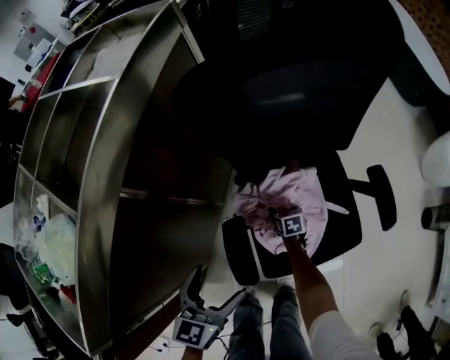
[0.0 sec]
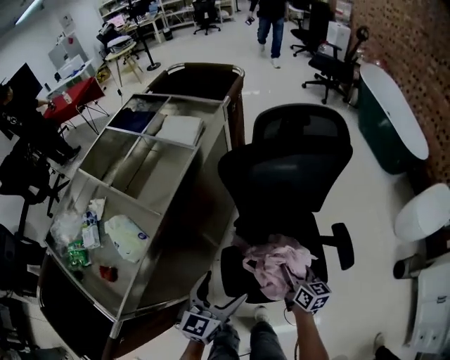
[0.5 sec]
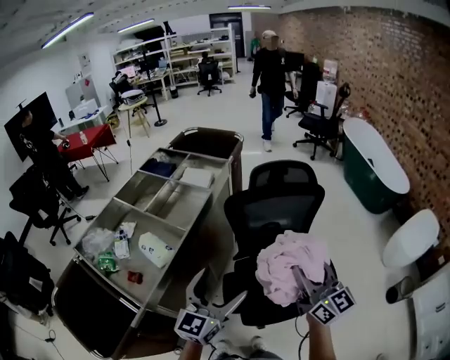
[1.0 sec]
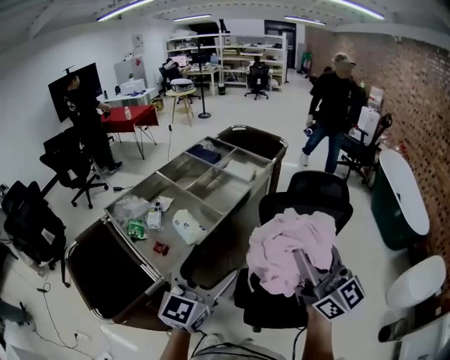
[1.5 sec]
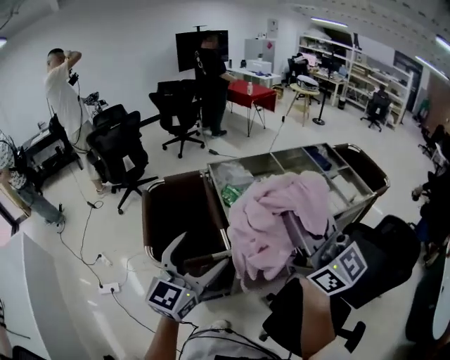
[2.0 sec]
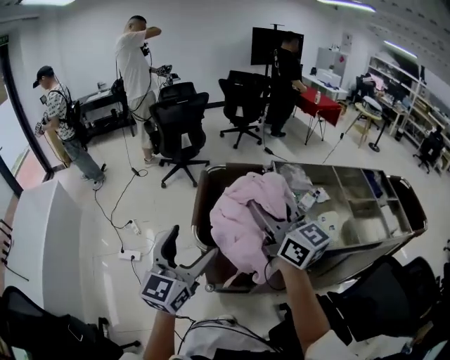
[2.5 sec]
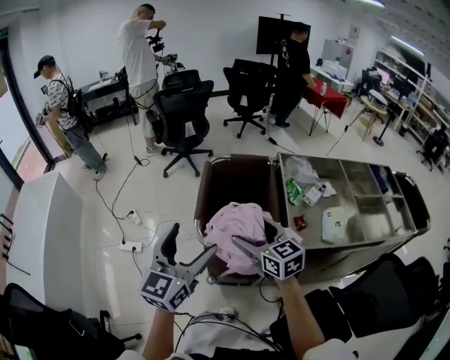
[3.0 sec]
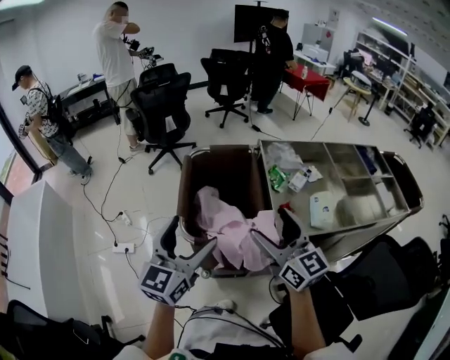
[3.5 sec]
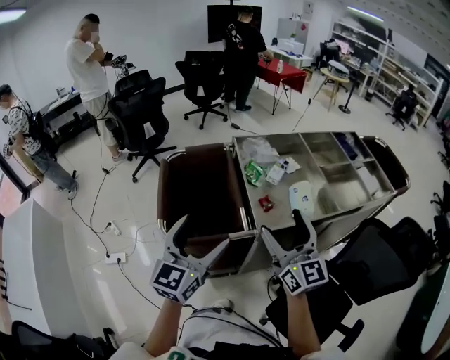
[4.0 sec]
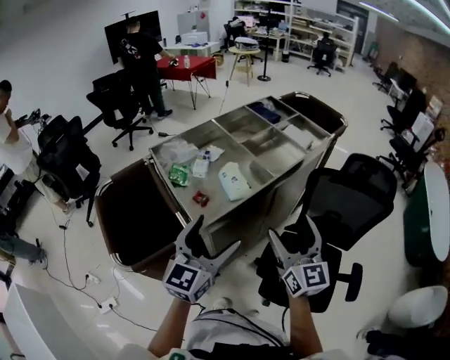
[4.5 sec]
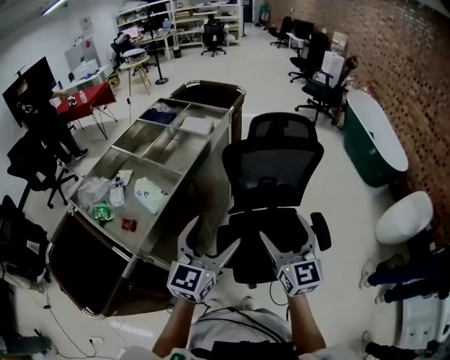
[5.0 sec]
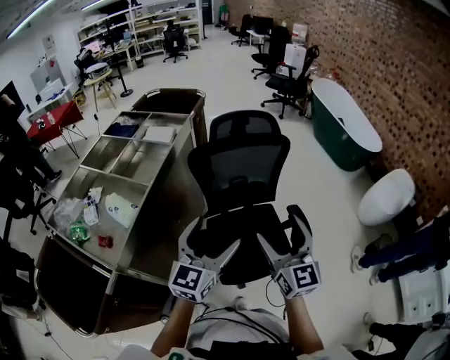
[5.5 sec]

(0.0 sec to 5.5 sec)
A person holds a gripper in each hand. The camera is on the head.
0.0 sec - 2.0 sec: The left gripper shifts roughly 40 cm upward, and tilts its fingers some 30 degrees upward; the right gripper moves upward, about 1 m, and angles its fingers upward, by approximately 80 degrees.
2.0 sec - 3.5 sec: The left gripper moves to the left, about 15 cm, and swivels about 20 degrees. Meanwhile the right gripper shifts about 25 cm downward, to the left and forward, rotates roughly 30 degrees, and opens up.
3.5 sec - 5.5 sec: The two grippers travel together, roughly 50 cm. The right gripper changes its angle by some 90 degrees, while the left gripper turns by about 80 degrees.

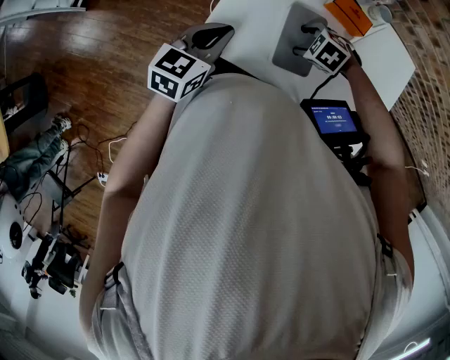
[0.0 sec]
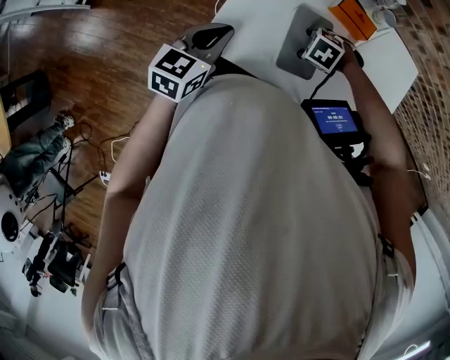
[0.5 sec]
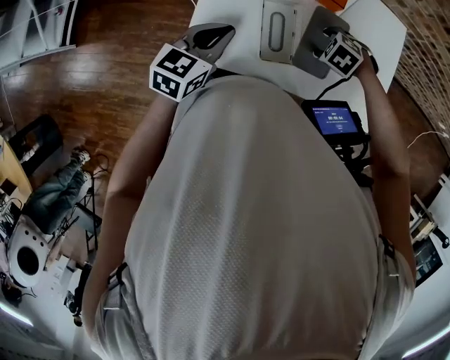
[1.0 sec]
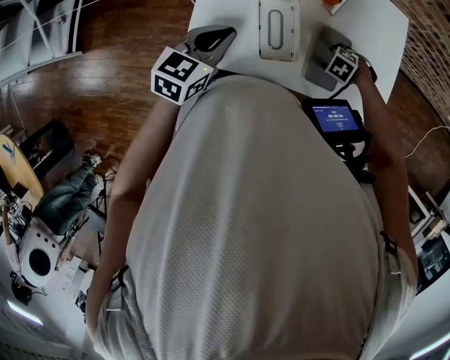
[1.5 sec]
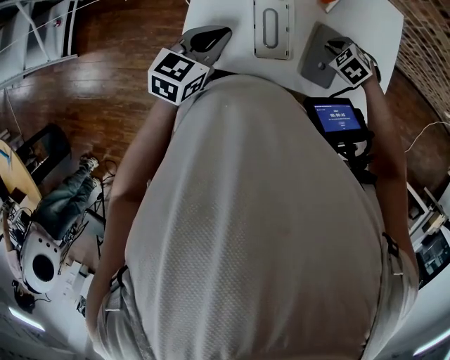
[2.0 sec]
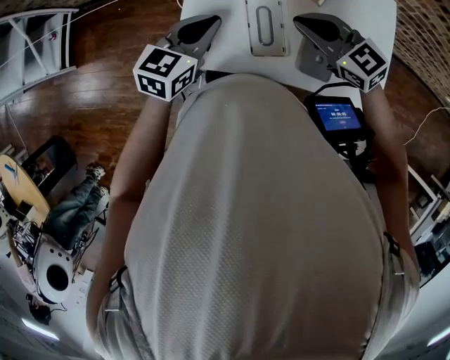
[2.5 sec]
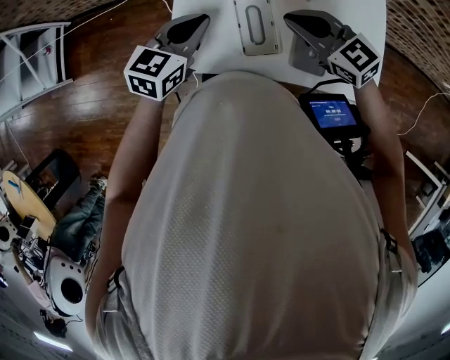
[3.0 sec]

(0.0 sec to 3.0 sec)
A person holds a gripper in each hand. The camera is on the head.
0.0 sec - 1.5 sec: The left gripper shifts by some 10 cm. Meanwhile the right gripper shifts by roughly 20 cm, and rotates about 20 degrees.
1.5 sec - 3.0 sec: The right gripper heads upward, covering roughly 25 cm, points its fingers roughly 60 degrees further upward, and closes; the left gripper shifts by about 5 cm.

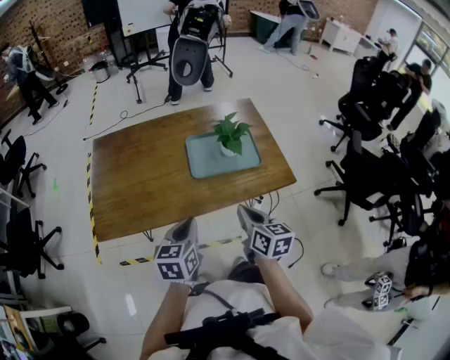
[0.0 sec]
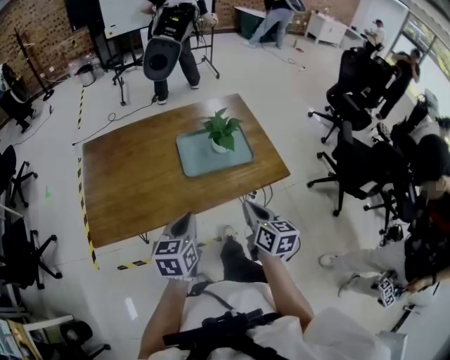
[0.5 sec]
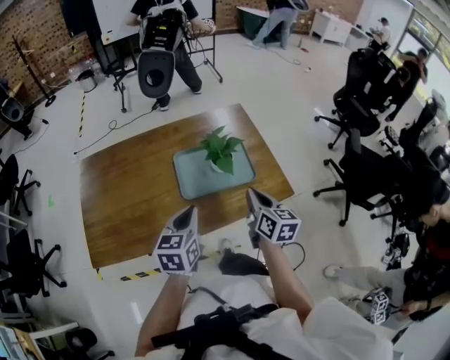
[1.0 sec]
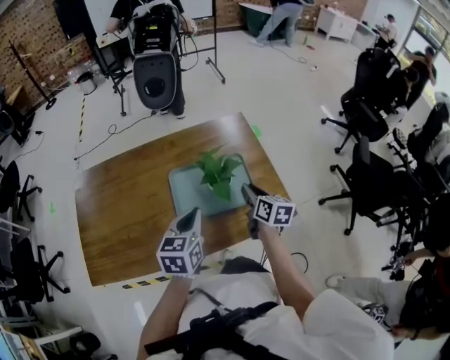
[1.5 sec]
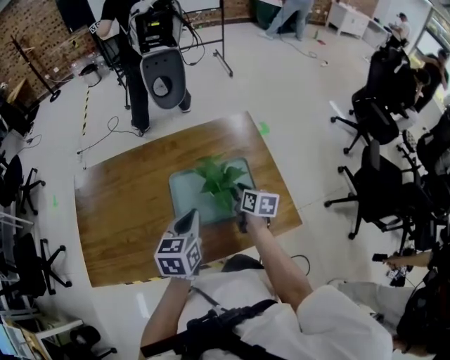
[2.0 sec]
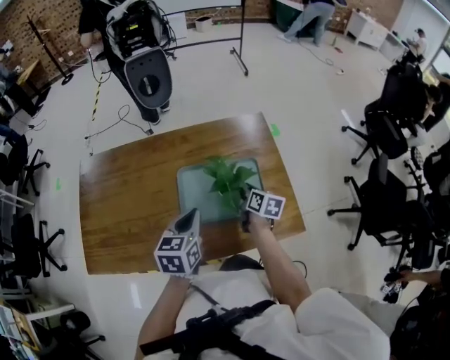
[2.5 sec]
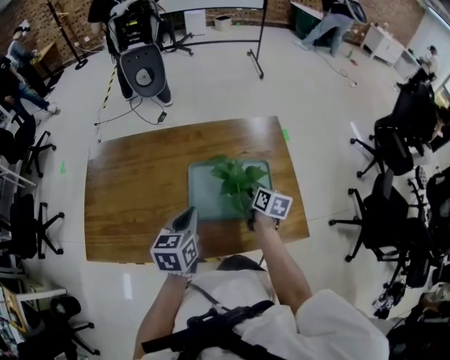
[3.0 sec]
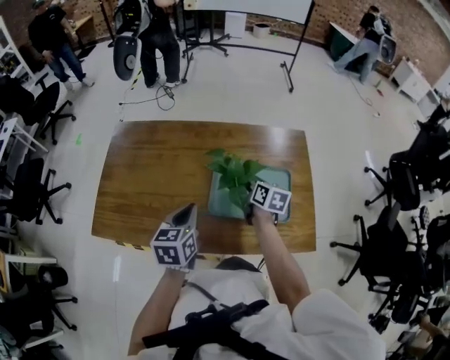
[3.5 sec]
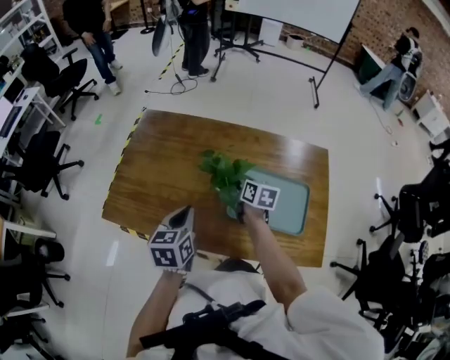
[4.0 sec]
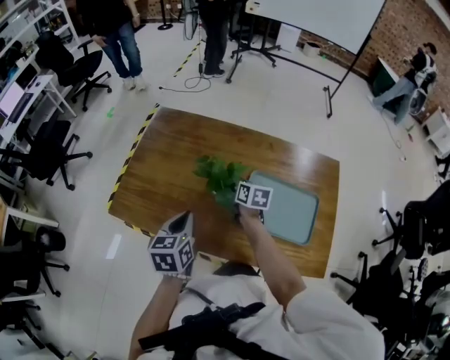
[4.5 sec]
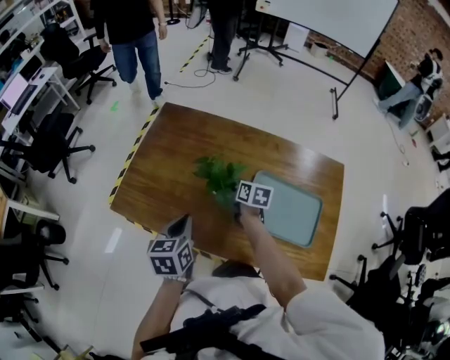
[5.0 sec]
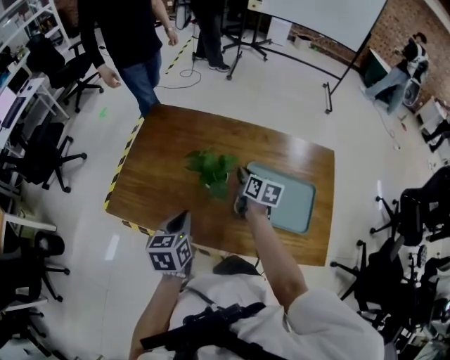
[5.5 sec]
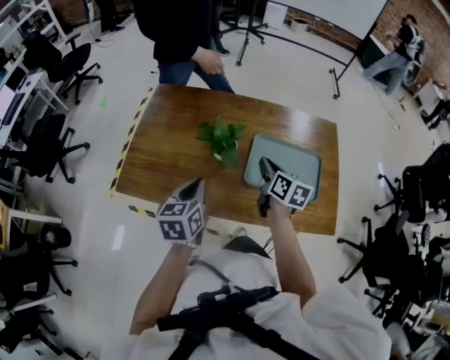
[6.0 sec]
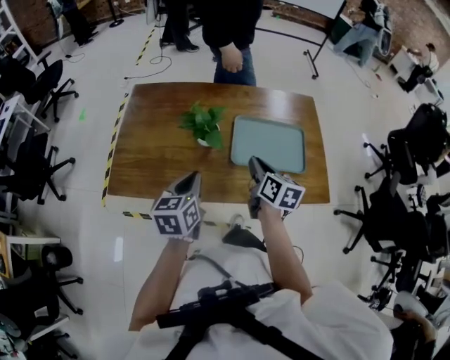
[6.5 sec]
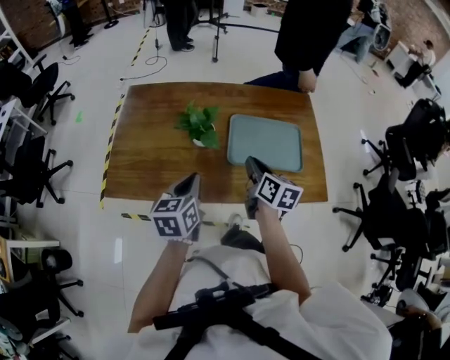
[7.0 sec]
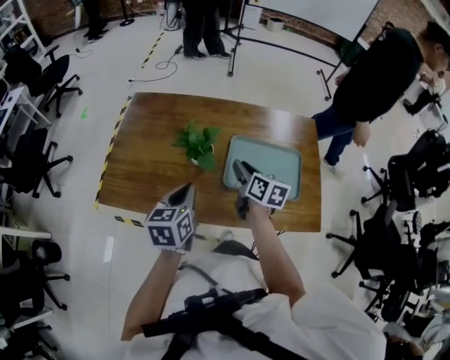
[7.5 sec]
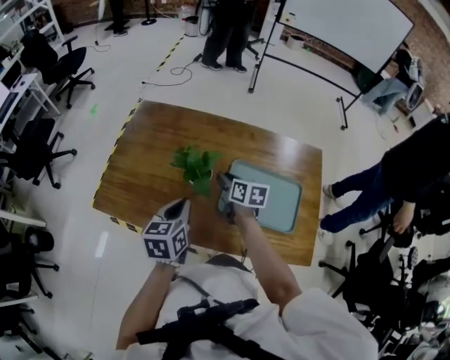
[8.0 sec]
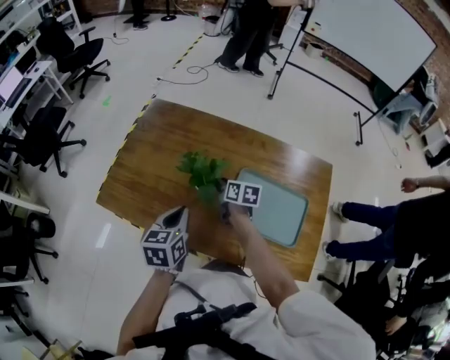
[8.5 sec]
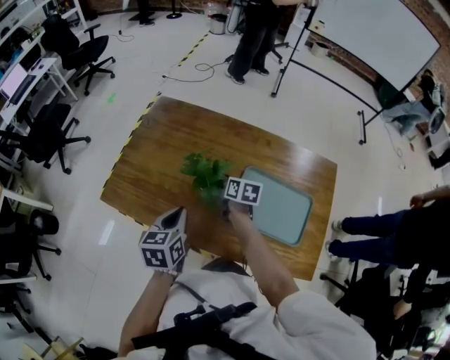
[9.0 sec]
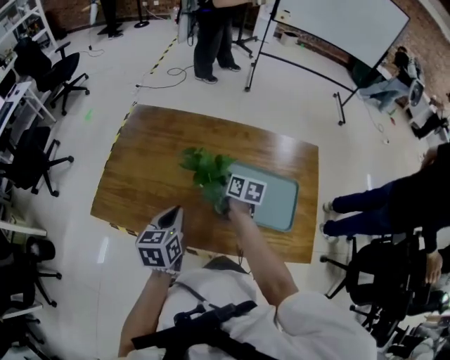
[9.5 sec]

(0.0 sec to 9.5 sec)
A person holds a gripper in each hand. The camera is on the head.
0.0 sec - 2.0 sec: The left gripper travels forward by approximately 25 cm; the right gripper travels forward and downward by approximately 35 cm, and opens its fingers.
2.0 sec - 4.0 sec: Both grippers move to the left, some 25 cm. The right gripper rotates roughly 30 degrees, and closes up, while the left gripper turns by about 30 degrees.
4.0 sec - 5.5 sec: The left gripper moves to the left, roughly 5 cm.
5.5 sec - 7.5 sec: The right gripper is displaced backward and upward by roughly 10 cm. The left gripper moves to the right, about 5 cm.
7.5 sec - 9.5 sec: The right gripper is displaced forward and downward by some 15 cm, and closes.

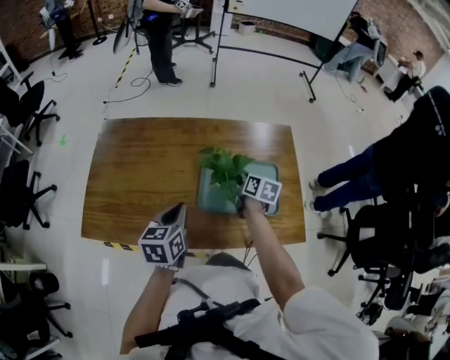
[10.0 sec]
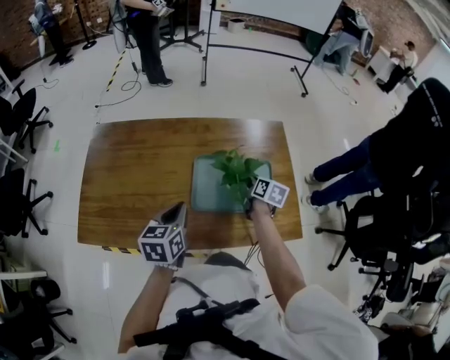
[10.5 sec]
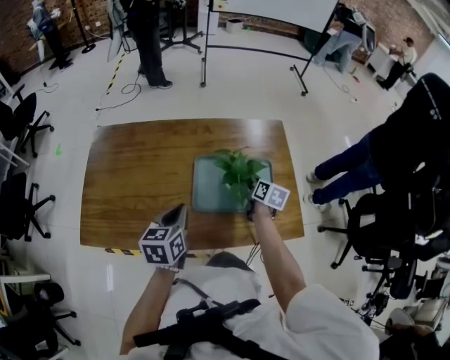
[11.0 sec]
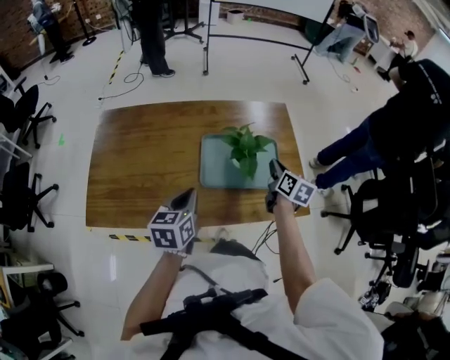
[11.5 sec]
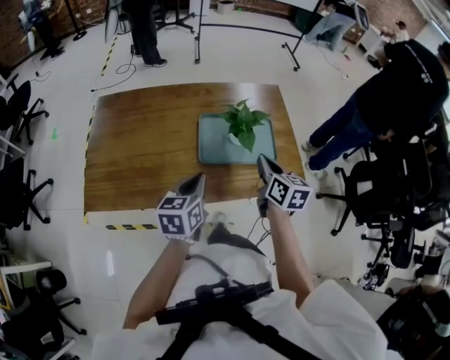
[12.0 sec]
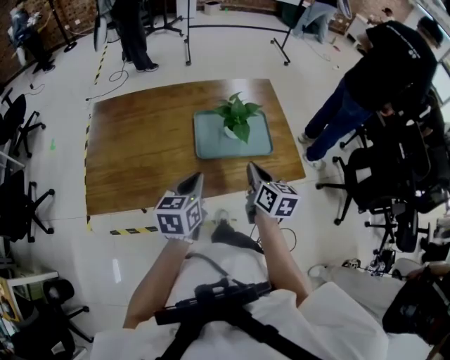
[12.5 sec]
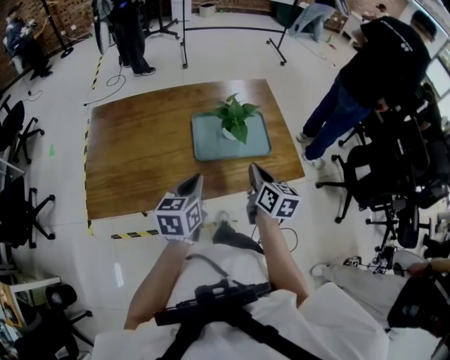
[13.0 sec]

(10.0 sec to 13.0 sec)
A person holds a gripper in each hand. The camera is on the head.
10.0 sec - 11.5 sec: The right gripper shifts some 15 cm to the right, backward and upward.
11.5 sec - 13.0 sec: The right gripper heads backward, covering roughly 15 cm. Meanwhile the left gripper travels backward by about 5 cm.

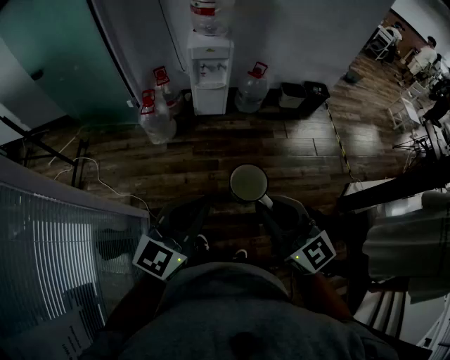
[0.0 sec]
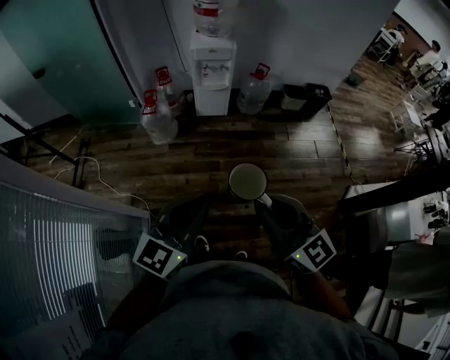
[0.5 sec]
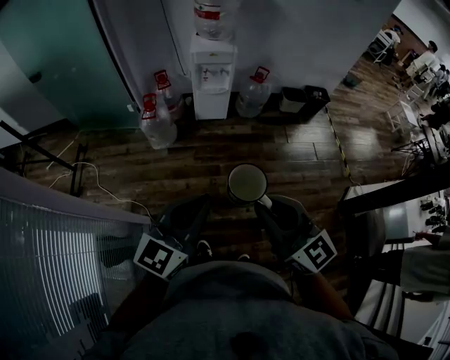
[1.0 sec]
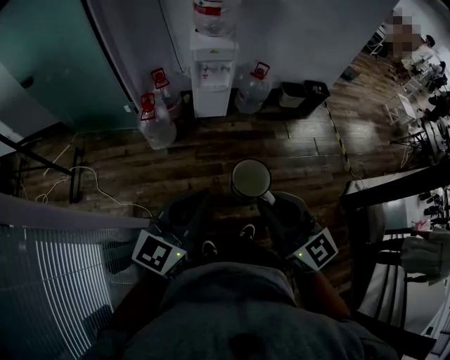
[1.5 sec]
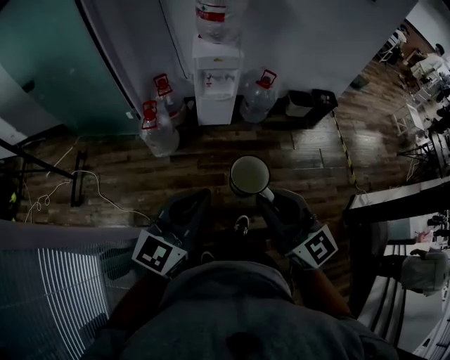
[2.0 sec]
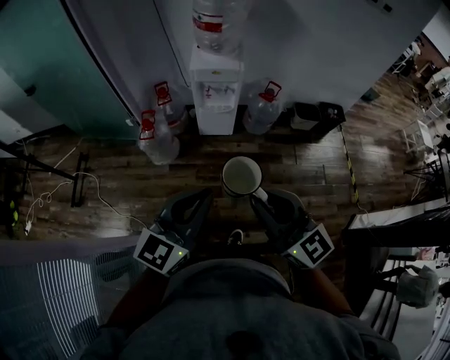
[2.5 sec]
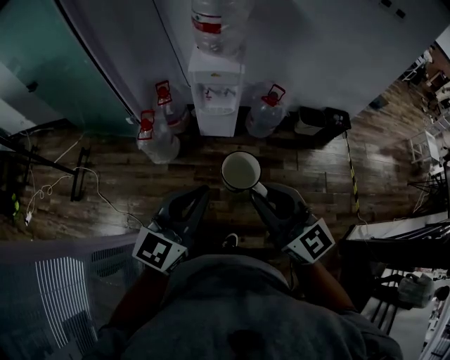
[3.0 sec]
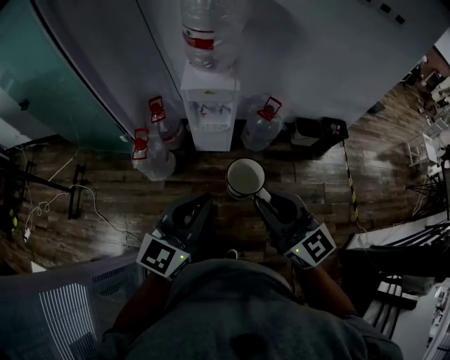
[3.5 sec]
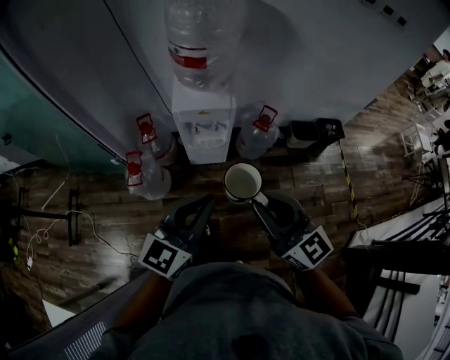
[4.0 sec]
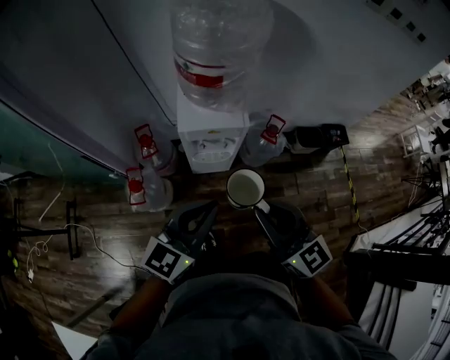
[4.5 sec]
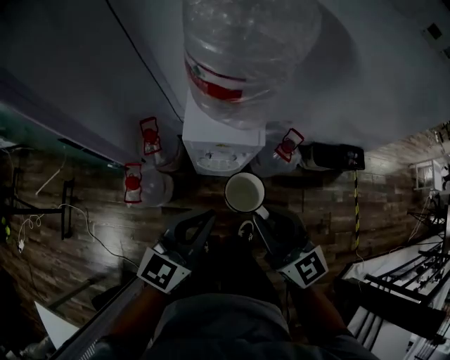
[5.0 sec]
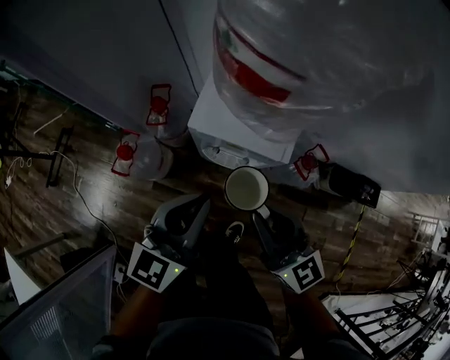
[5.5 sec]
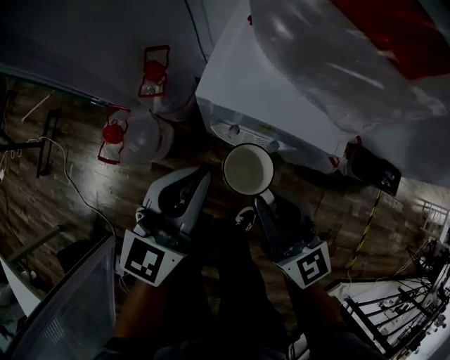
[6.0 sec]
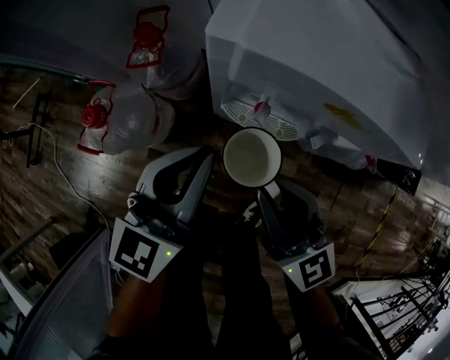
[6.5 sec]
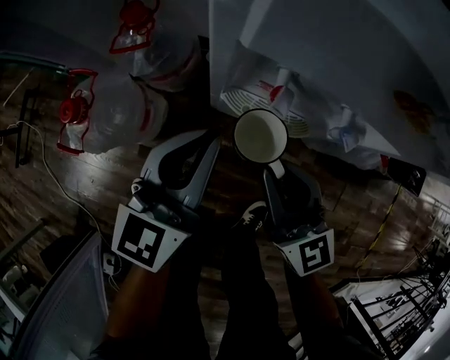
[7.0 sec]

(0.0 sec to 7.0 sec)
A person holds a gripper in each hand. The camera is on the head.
0.0 sec - 2.0 sec: The grippers both shift forward by approximately 15 cm.
2.0 sec - 3.5 sec: Both grippers move forward and to the right, approximately 25 cm.
3.5 sec - 5.0 sec: The grippers both shift forward by about 35 cm.
5.0 sec - 7.0 sec: The two grippers go approximately 40 cm downward. The left gripper turns by about 20 degrees.
